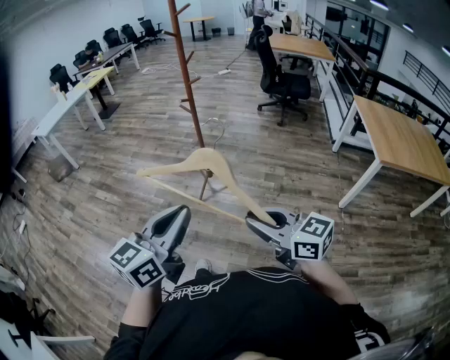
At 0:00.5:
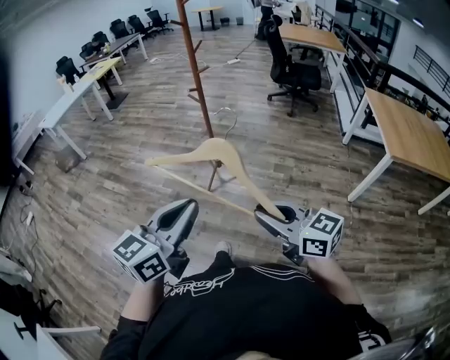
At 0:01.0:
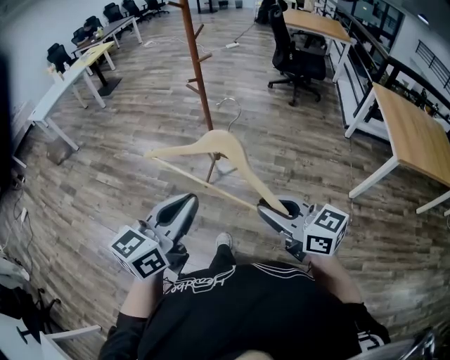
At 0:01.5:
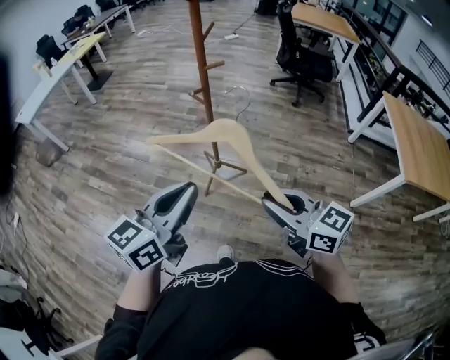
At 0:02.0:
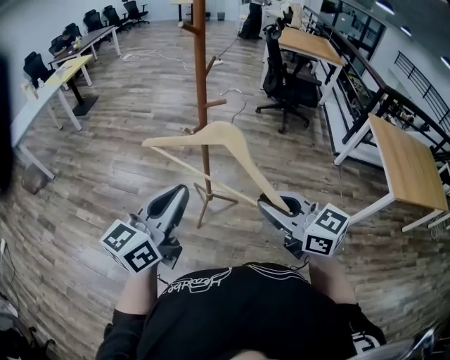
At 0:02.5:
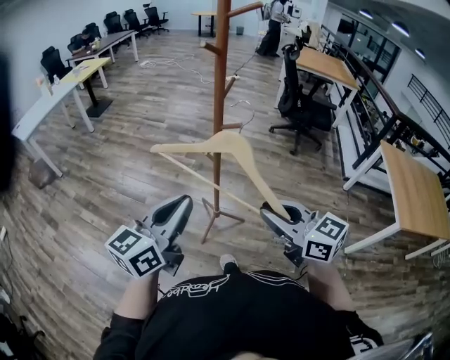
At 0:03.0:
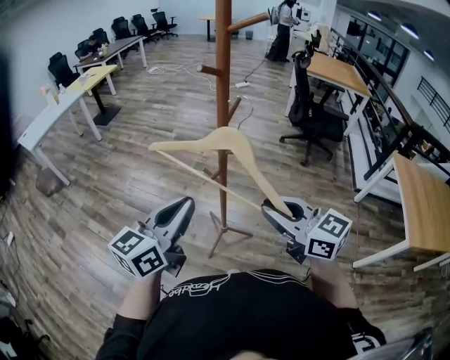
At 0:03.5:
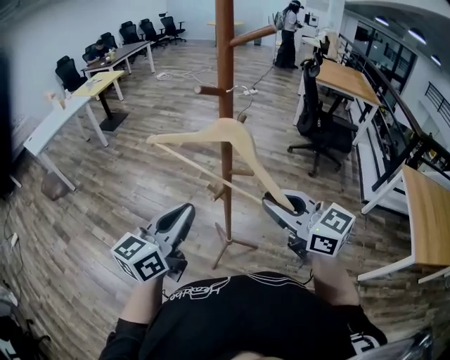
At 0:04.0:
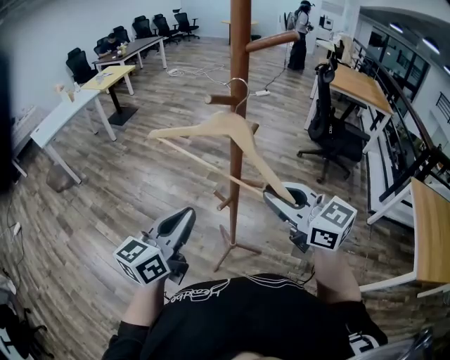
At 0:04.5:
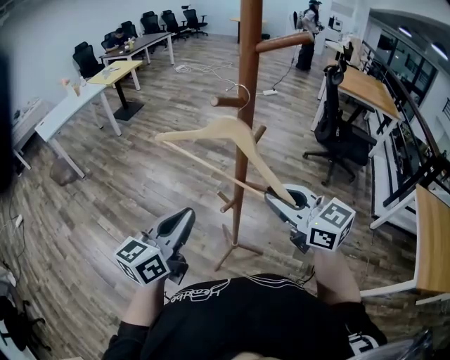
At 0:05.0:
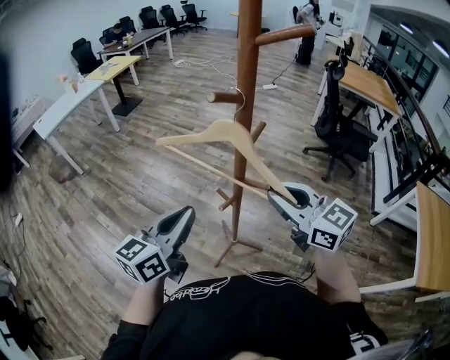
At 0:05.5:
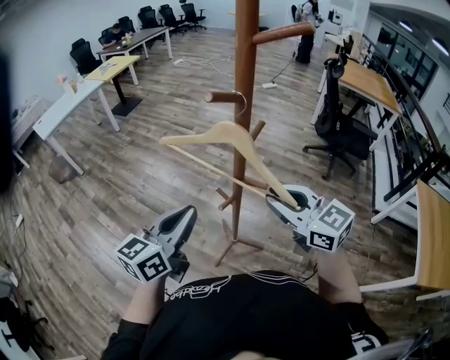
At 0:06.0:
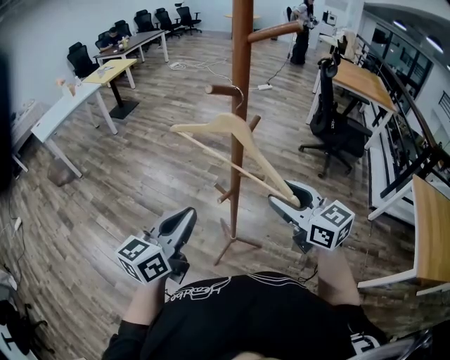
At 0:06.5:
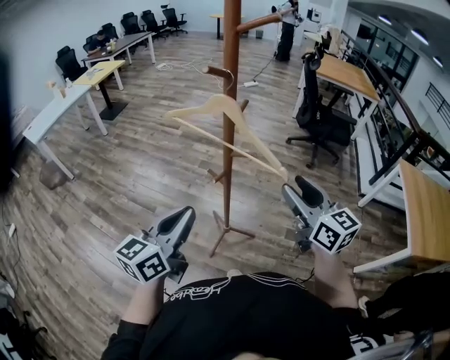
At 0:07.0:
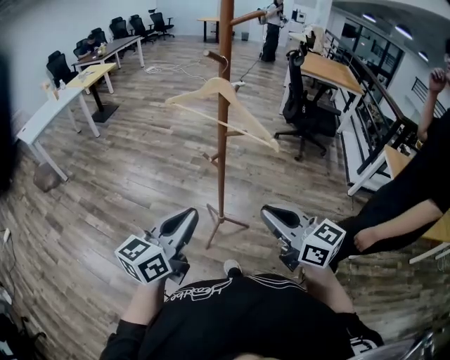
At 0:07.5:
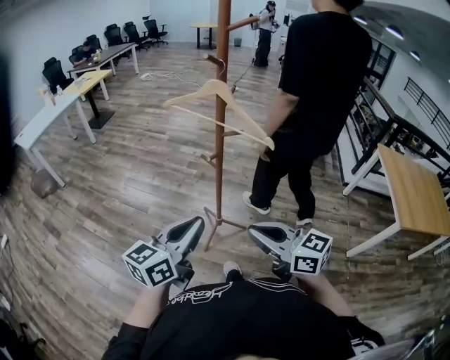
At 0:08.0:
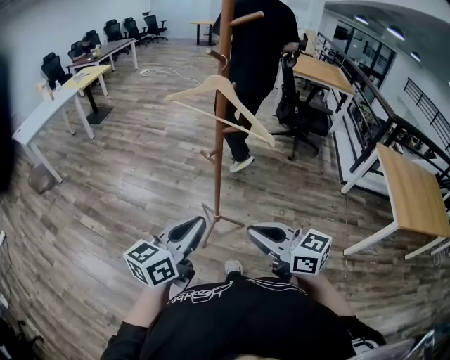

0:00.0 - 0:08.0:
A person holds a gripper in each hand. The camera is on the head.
0:00.0 - 0:02.0: Both grippers travel together forward, roughly 40 cm.
0:02.0 - 0:04.0: Both grippers travel together forward, some 25 cm.
0:04.0 - 0:06.0: The right gripper moves downward, approximately 5 cm, and opens up.
0:06.0 - 0:08.0: The grippers both shift backward by about 25 cm. The right gripper closes its fingers.

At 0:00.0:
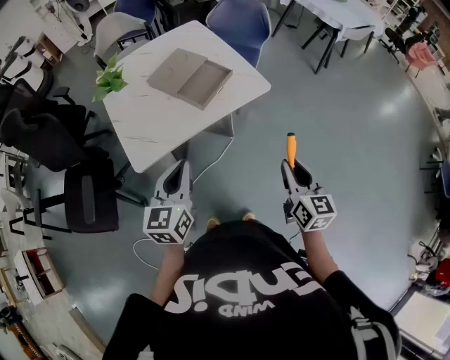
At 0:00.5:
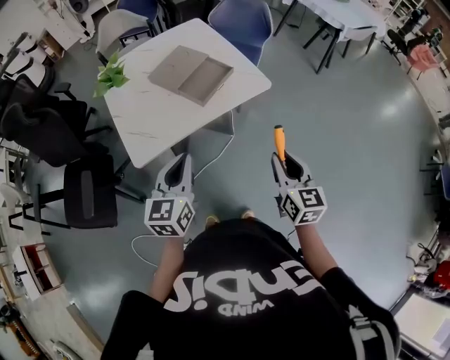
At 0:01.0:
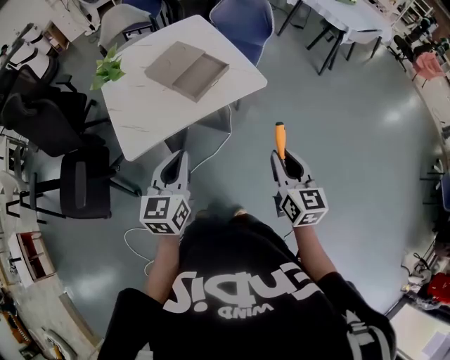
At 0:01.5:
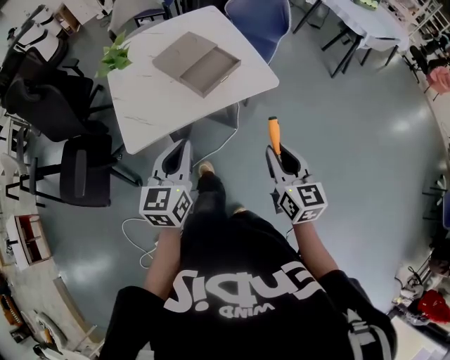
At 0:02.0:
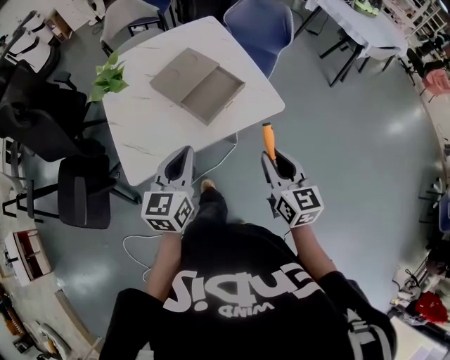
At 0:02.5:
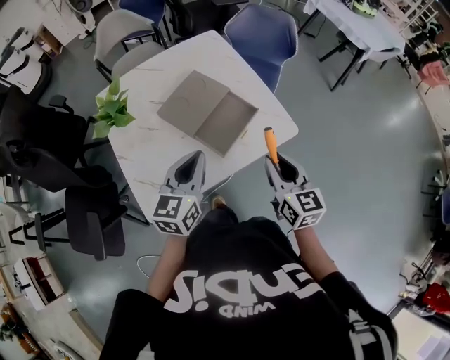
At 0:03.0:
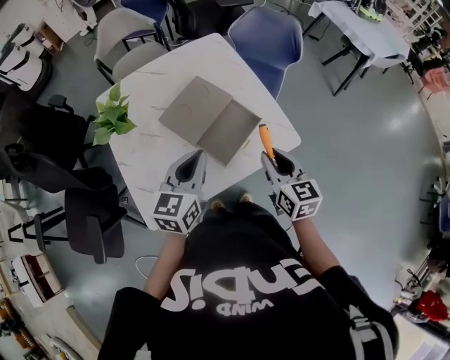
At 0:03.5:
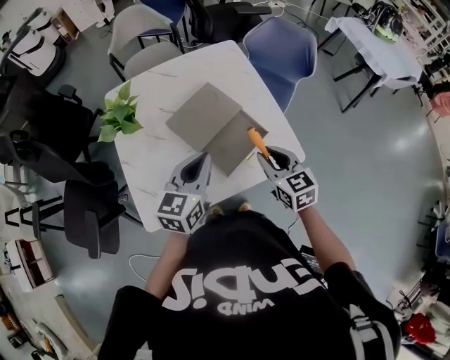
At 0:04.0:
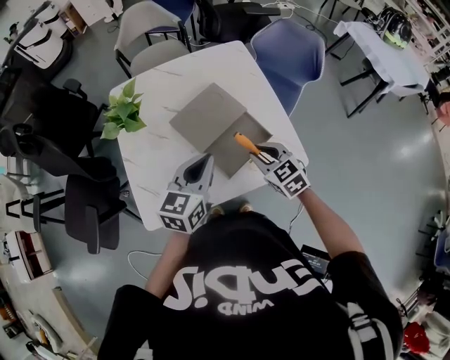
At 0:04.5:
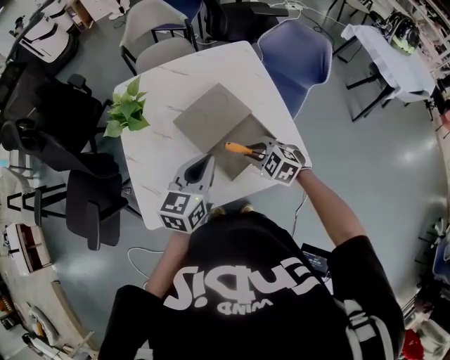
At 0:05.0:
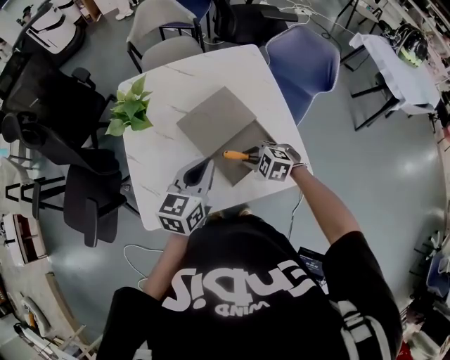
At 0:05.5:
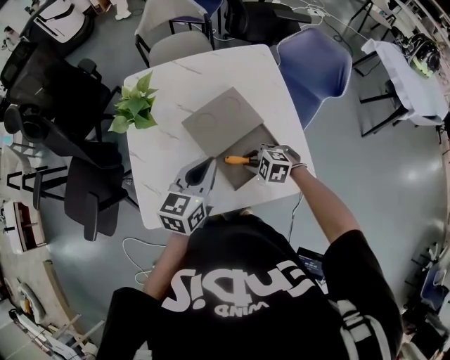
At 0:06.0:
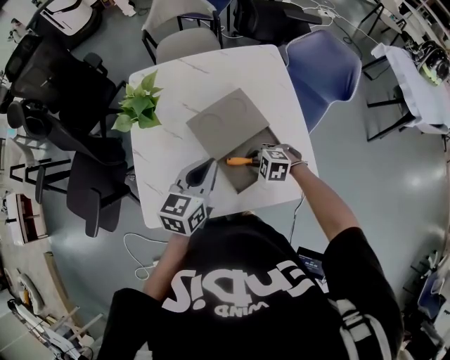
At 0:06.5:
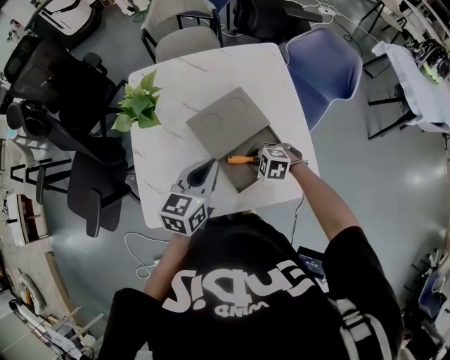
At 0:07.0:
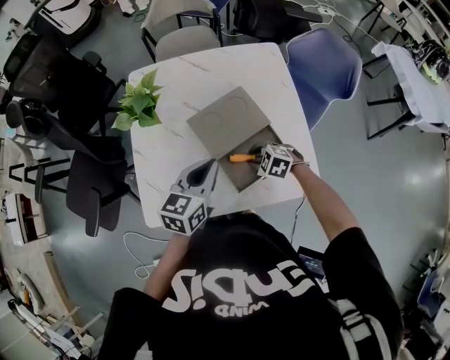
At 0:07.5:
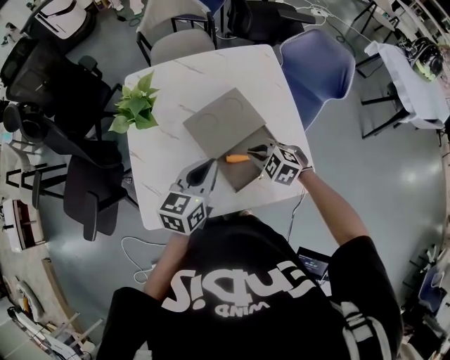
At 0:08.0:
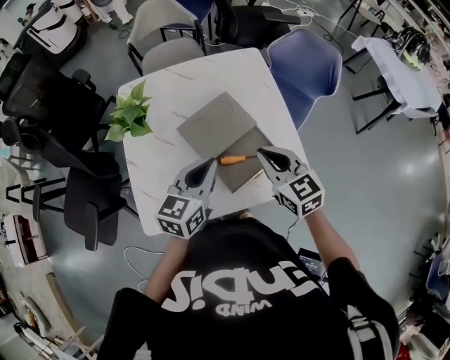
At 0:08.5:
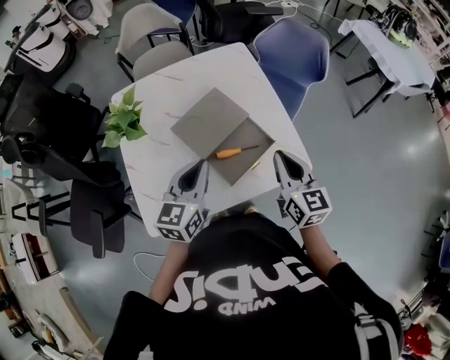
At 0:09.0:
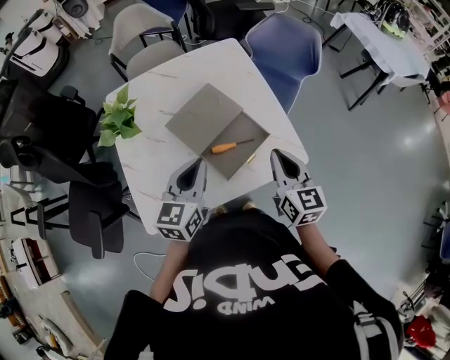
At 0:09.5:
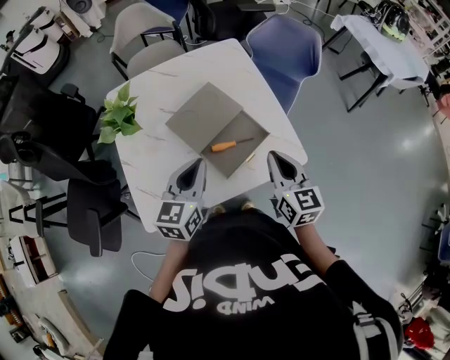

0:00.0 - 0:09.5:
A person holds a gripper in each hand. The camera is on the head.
0:00.0 - 0:02.0: The two grippers go some 15 cm forward.
0:02.0 - 0:04.0: The left gripper is displaced forward by some 20 cm. Meanwhile the right gripper travels forward and to the left by approximately 25 cm, and changes its angle by roughly 40 degrees.
0:04.0 - 0:05.5: The right gripper heads downward, covering about 10 cm, and changes its angle by some 50 degrees.
0:05.5 - 0:07.5: The right gripper changes place by some 5 cm.
0:07.5 - 0:09.5: The right gripper goes roughly 20 cm upward, to the right and backward, and tilts its fingers about 40 degrees upward; the left gripper ends up approximately 5 cm from where it was.

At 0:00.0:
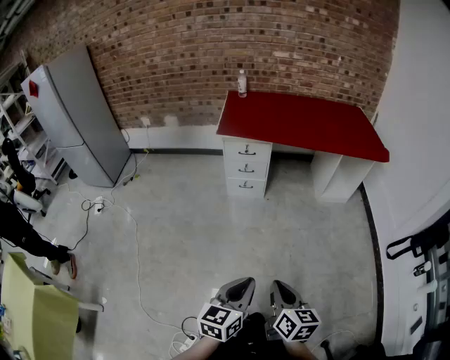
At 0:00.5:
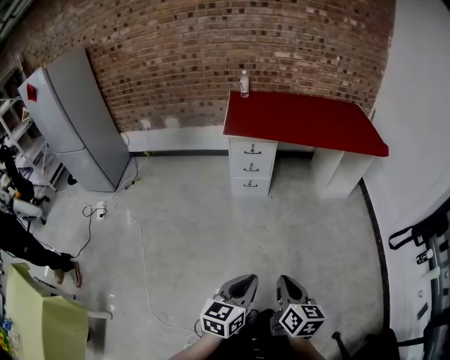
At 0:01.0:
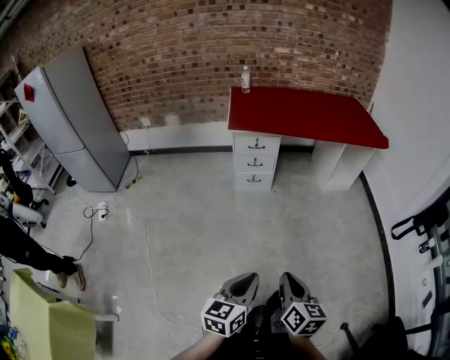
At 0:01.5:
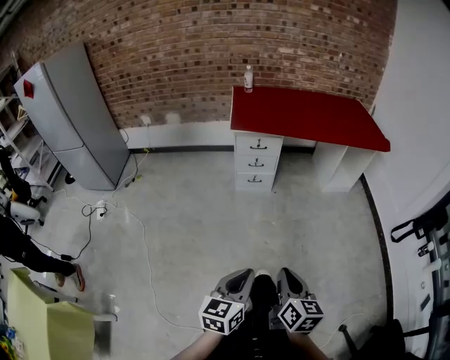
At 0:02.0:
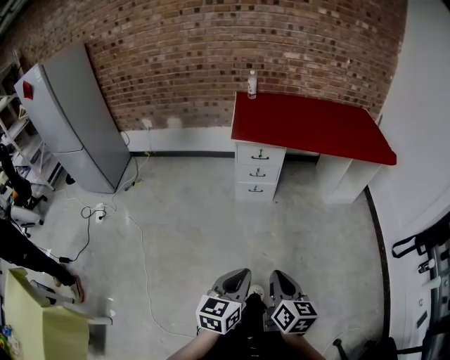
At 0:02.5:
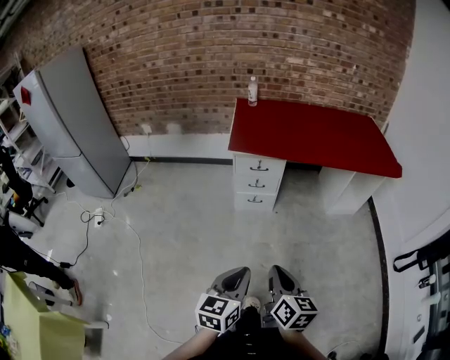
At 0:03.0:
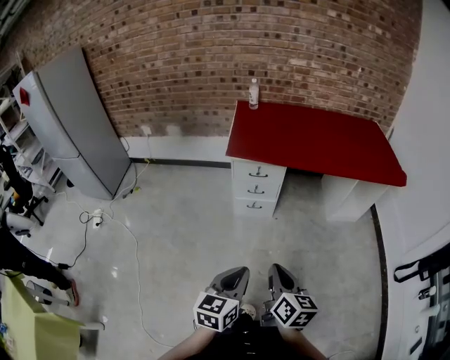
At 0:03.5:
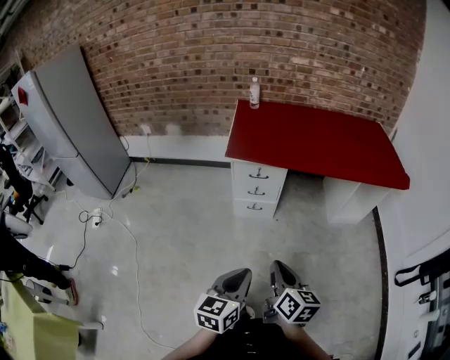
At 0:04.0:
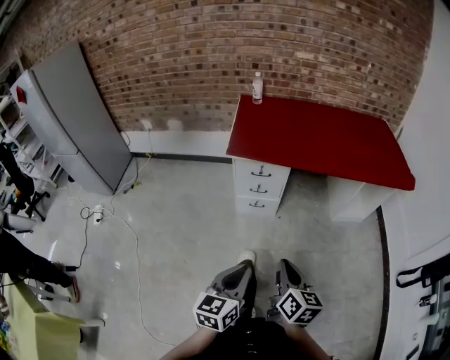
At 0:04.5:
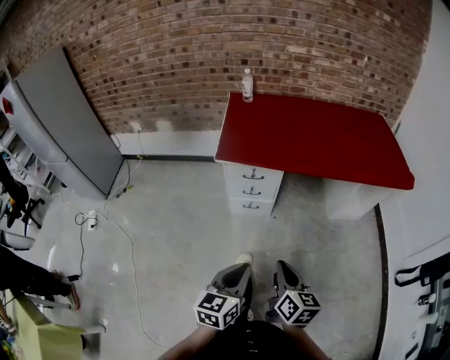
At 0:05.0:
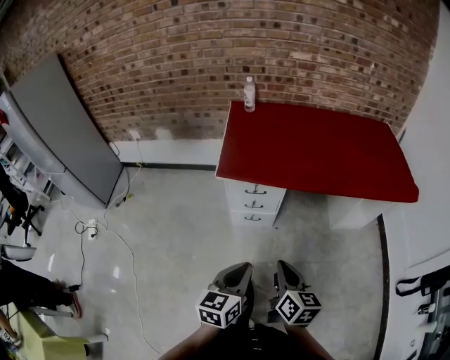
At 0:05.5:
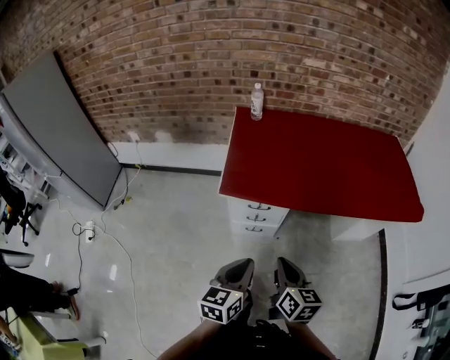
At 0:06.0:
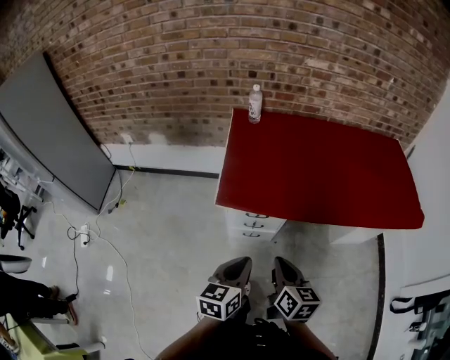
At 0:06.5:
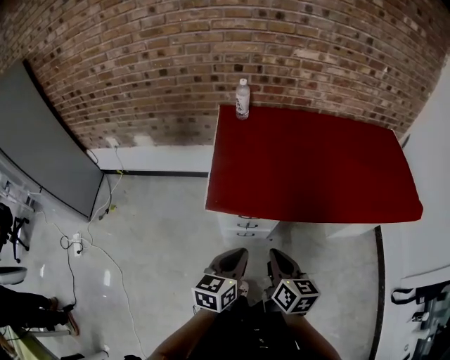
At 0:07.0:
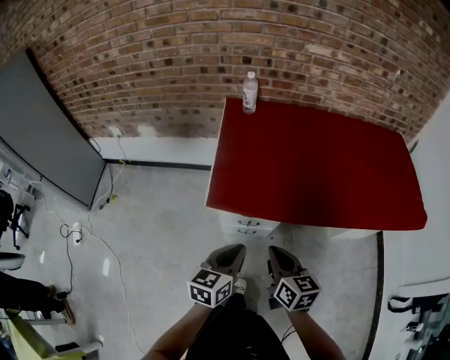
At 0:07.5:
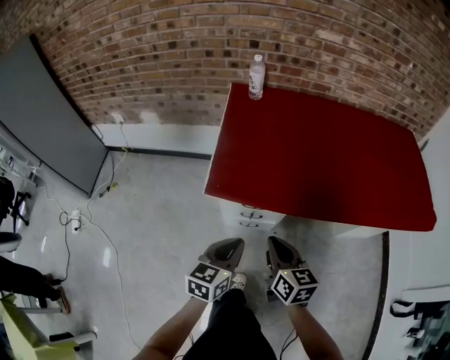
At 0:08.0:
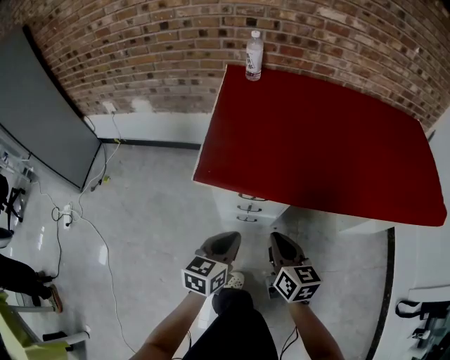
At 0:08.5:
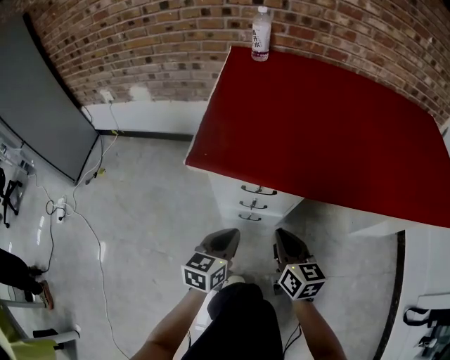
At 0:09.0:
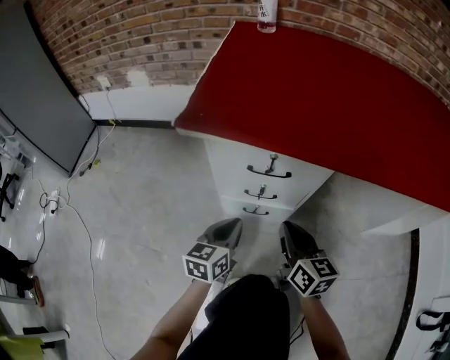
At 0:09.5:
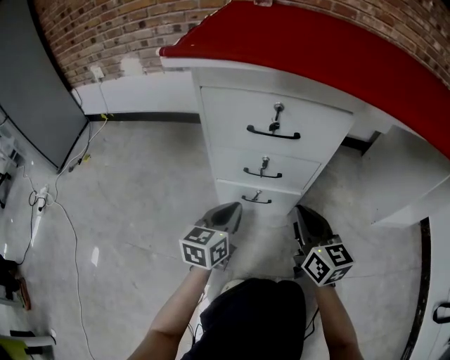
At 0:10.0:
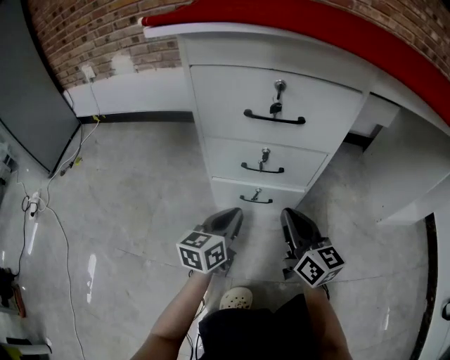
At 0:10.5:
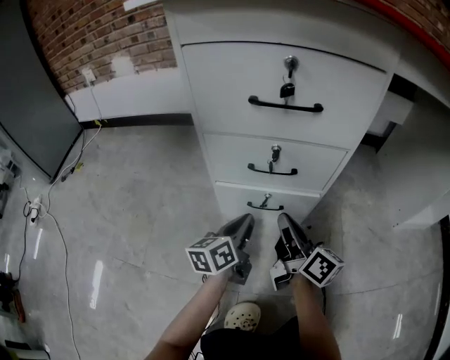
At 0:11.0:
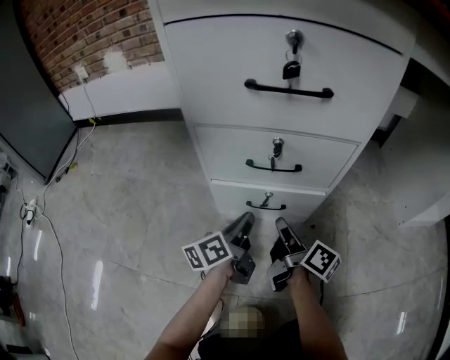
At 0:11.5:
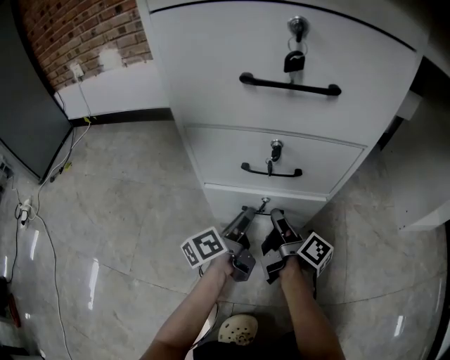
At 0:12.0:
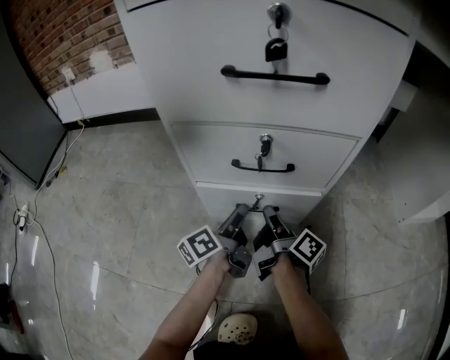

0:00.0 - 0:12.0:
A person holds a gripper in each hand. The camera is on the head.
0:00.0 - 0:02.0: The left gripper travels to the left by roughly 15 cm, while the right gripper travels to the left and forward by approximately 15 cm.
0:02.0 - 0:04.0: Both grippers travel together forward, approximately 20 cm.
0:04.0 - 0:06.0: The grippers both shift forward by about 30 cm.
0:06.0 - 0:08.0: Both grippers move downward and forward, roughly 20 cm.
0:08.0 - 0:10.0: The two grippers go about 40 cm downward.
0:10.0 - 0:12.0: The grippers both shift downward and forward by approximately 20 cm. The right gripper twists approximately 60 degrees clockwise, seen from behind; the left gripper twists approximately 50 degrees counterclockwise, seen from behind, and opens up.
